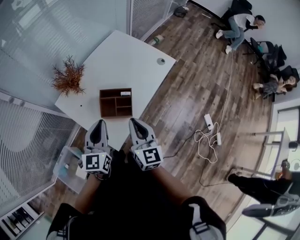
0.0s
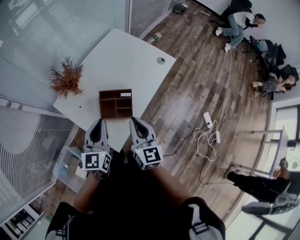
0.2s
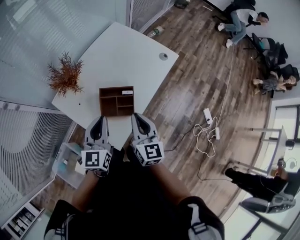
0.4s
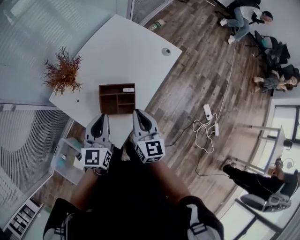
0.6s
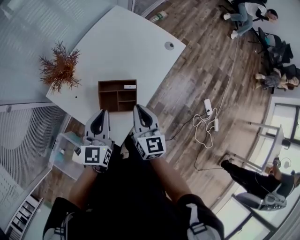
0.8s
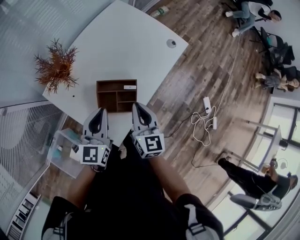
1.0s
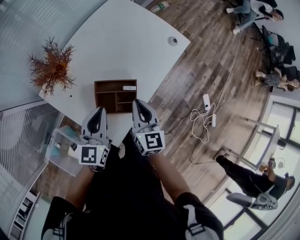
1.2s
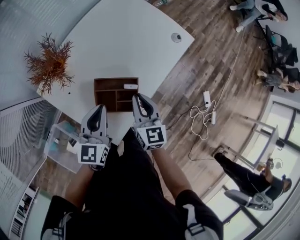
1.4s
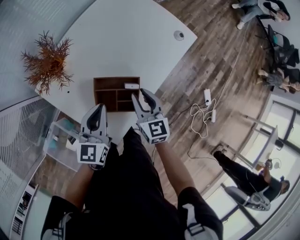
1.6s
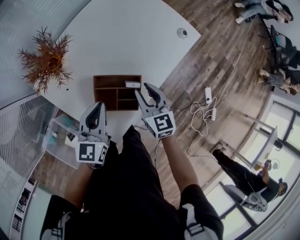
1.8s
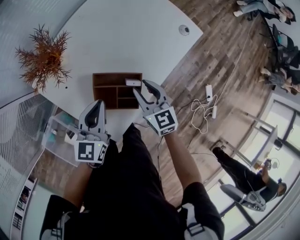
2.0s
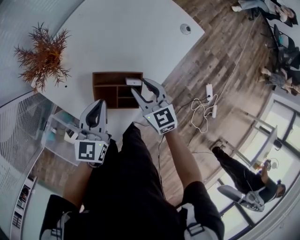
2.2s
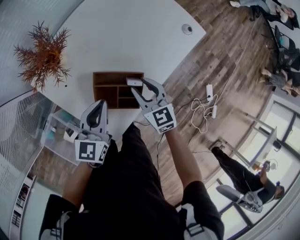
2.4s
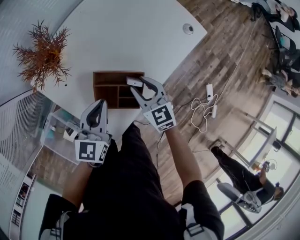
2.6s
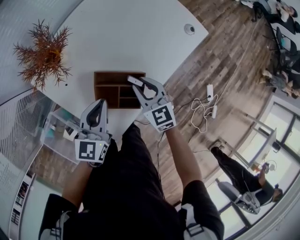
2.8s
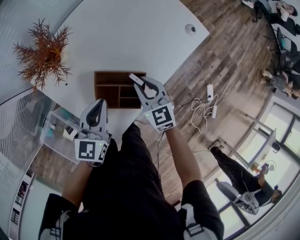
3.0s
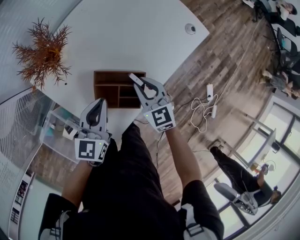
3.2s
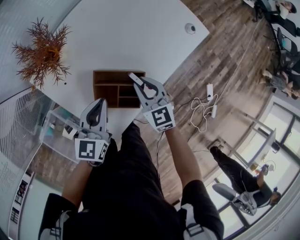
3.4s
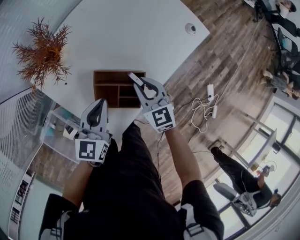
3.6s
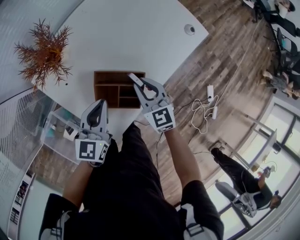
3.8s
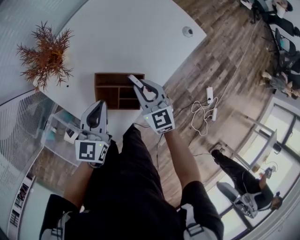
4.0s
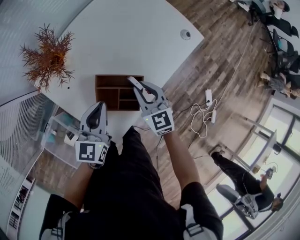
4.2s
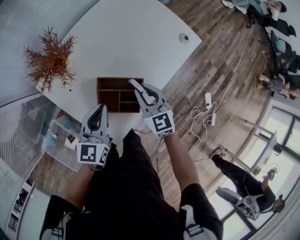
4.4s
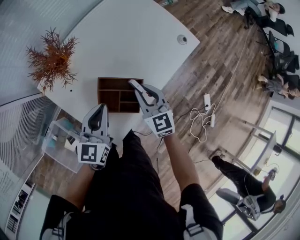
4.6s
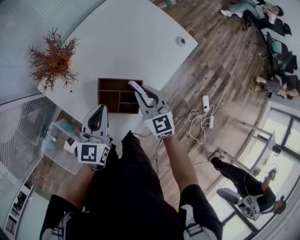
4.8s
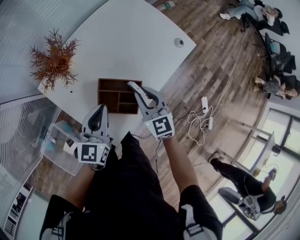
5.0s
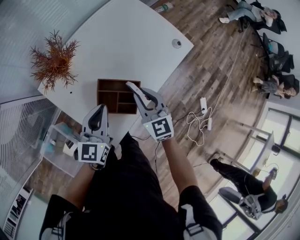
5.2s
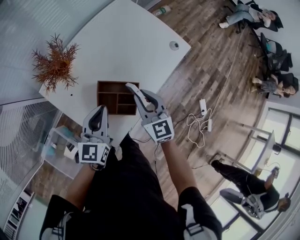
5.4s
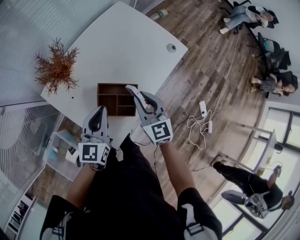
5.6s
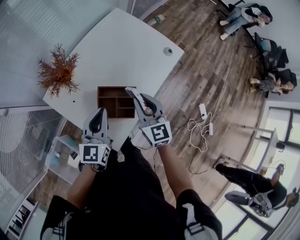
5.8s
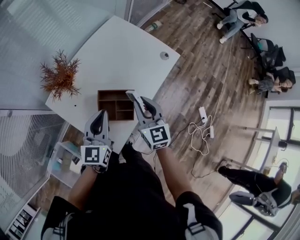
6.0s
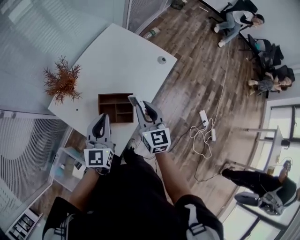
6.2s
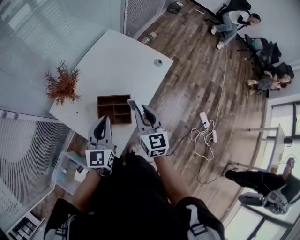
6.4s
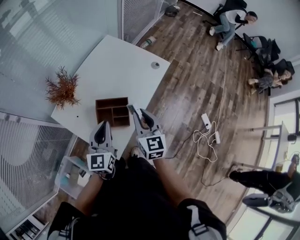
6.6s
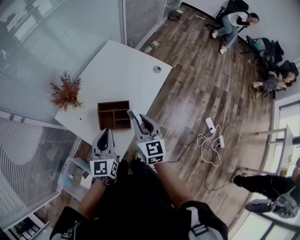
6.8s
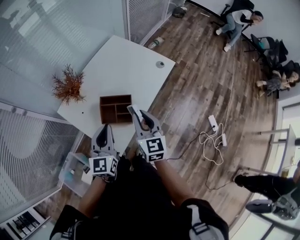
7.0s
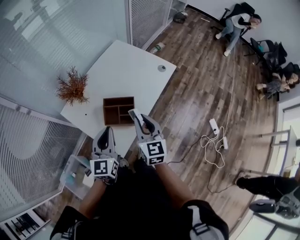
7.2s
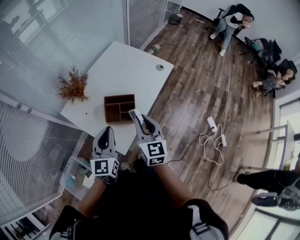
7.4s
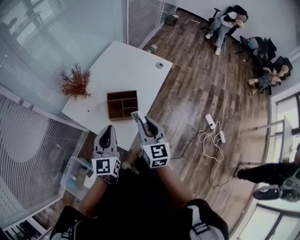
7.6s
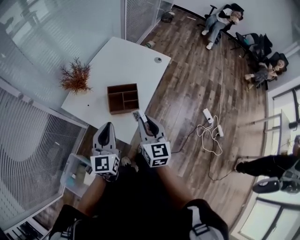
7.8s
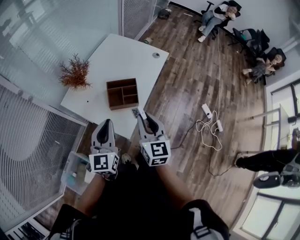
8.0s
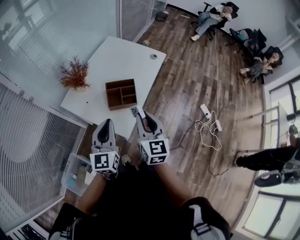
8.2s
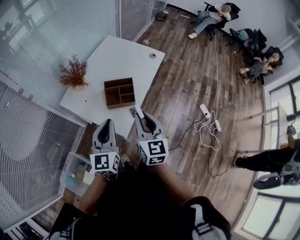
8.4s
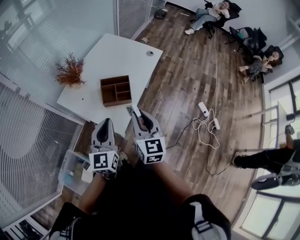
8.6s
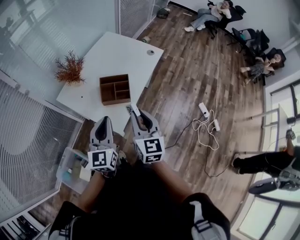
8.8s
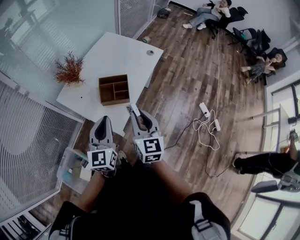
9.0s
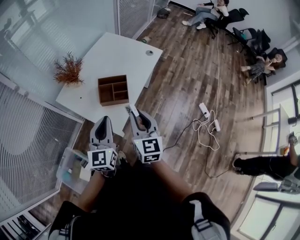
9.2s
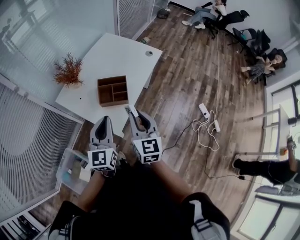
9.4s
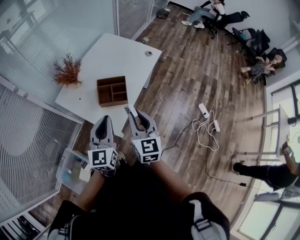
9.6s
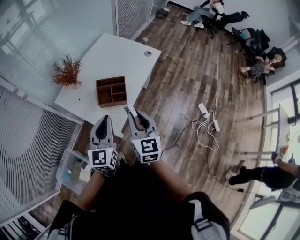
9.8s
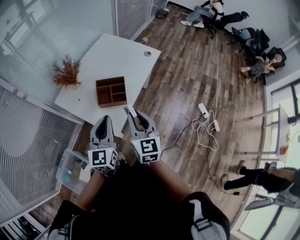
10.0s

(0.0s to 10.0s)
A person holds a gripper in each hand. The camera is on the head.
0.0s - 1.4s: The two grippers go about 20 cm forward and downward.
1.4s - 2.8s: The right gripper heads downward, covering approximately 10 cm, and swivels roughly 30 degrees.
2.8s - 4.2s: The grippers make only small movements.
4.2s - 5.8s: The right gripper travels upward by approximately 10 cm. The left gripper travels upward by approximately 10 cm.
5.8s - 7.2s: Both grippers travel together backward and upward, roughly 15 cm.
7.2s - 8.6s: Both grippers move backward, approximately 15 cm.
8.6s - 10.0s: The grippers move only a little.

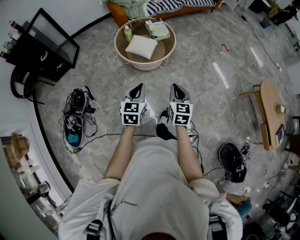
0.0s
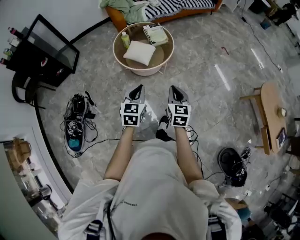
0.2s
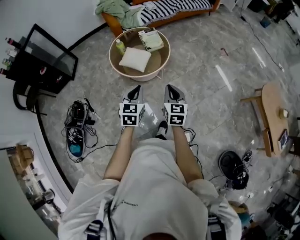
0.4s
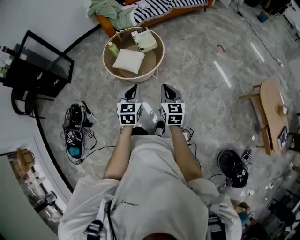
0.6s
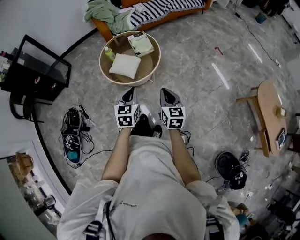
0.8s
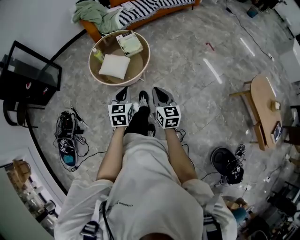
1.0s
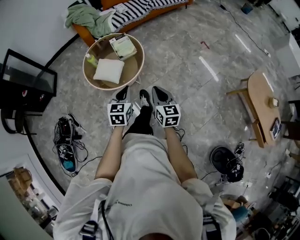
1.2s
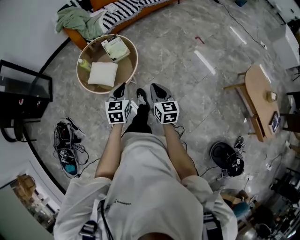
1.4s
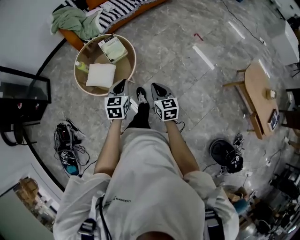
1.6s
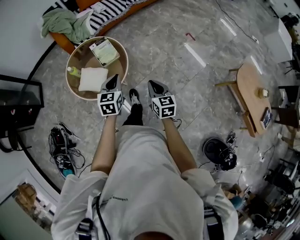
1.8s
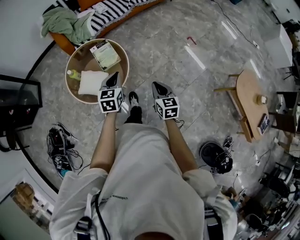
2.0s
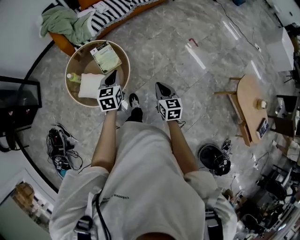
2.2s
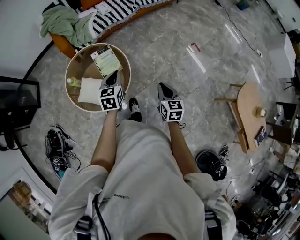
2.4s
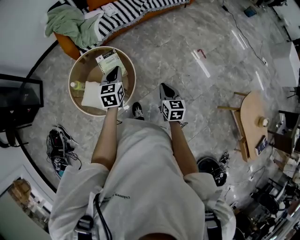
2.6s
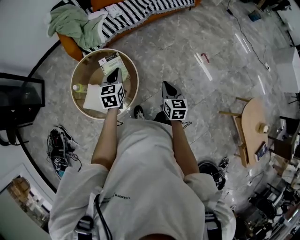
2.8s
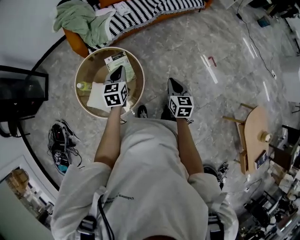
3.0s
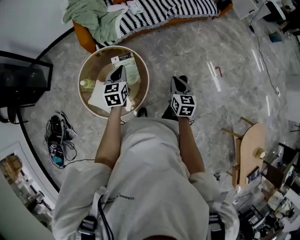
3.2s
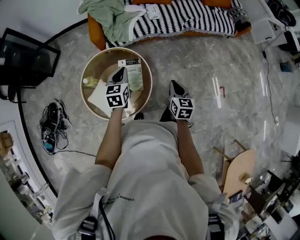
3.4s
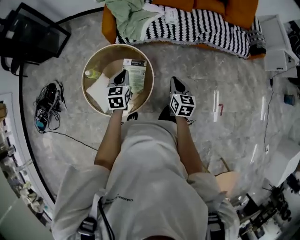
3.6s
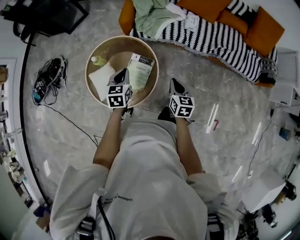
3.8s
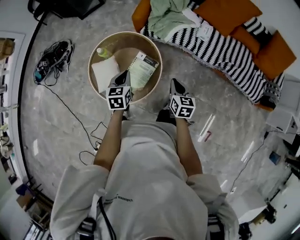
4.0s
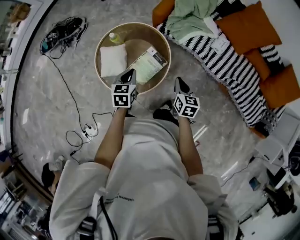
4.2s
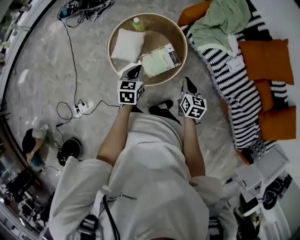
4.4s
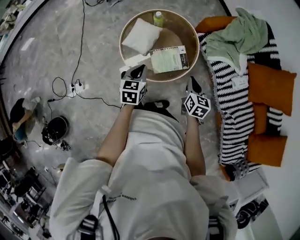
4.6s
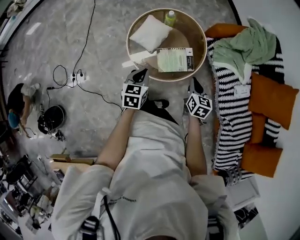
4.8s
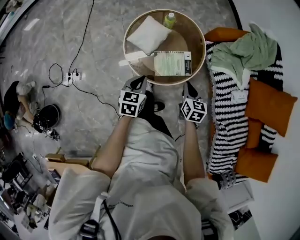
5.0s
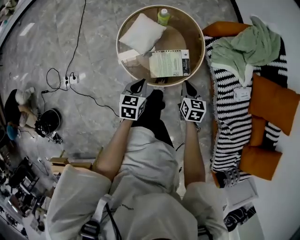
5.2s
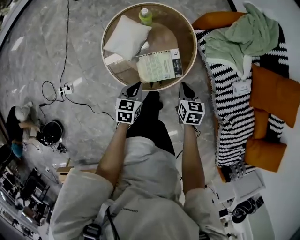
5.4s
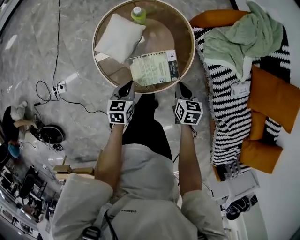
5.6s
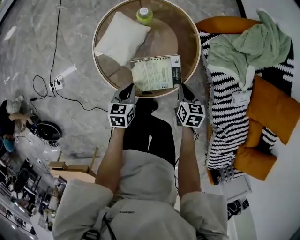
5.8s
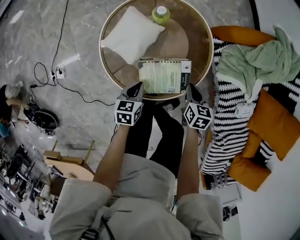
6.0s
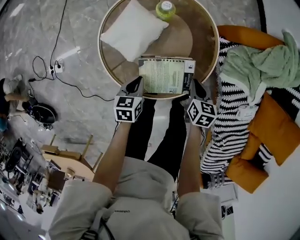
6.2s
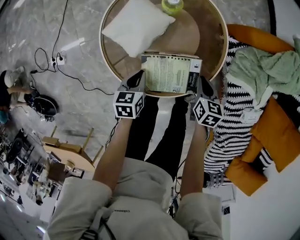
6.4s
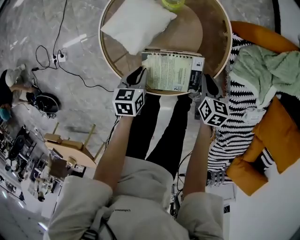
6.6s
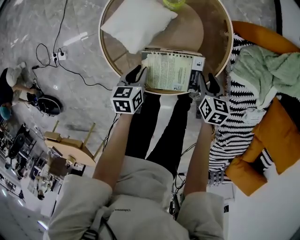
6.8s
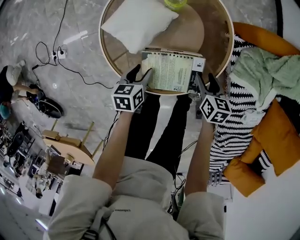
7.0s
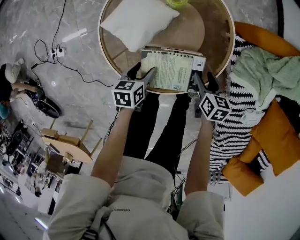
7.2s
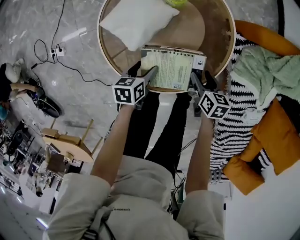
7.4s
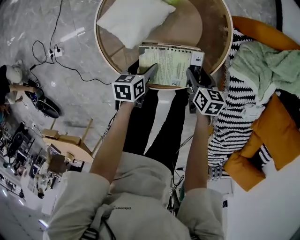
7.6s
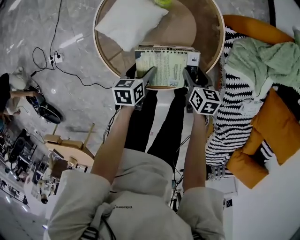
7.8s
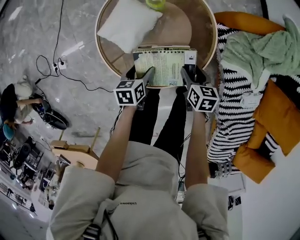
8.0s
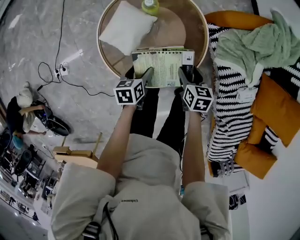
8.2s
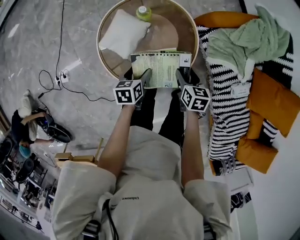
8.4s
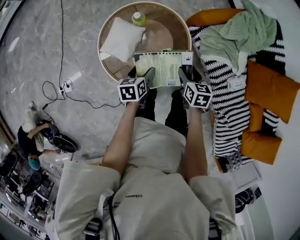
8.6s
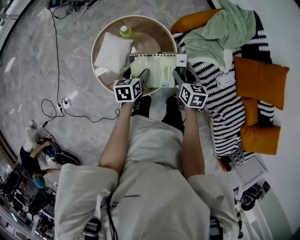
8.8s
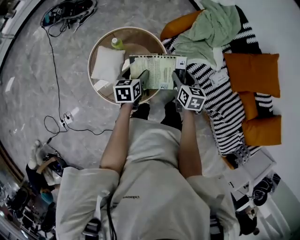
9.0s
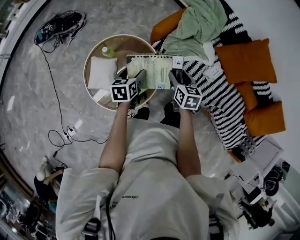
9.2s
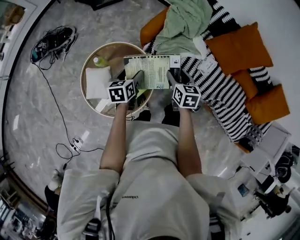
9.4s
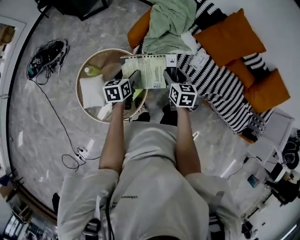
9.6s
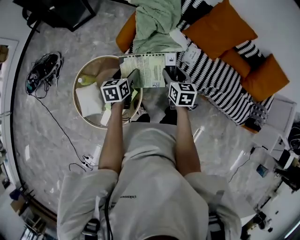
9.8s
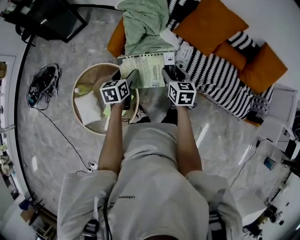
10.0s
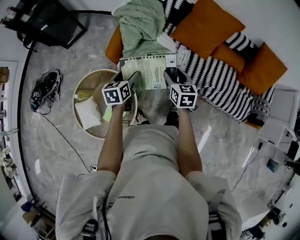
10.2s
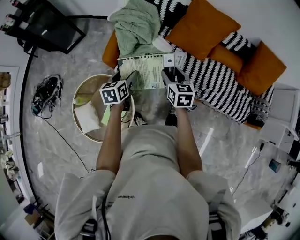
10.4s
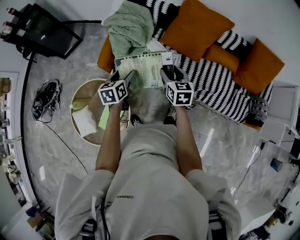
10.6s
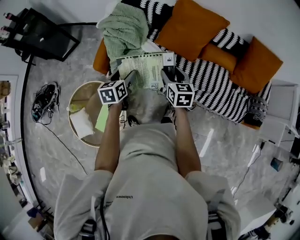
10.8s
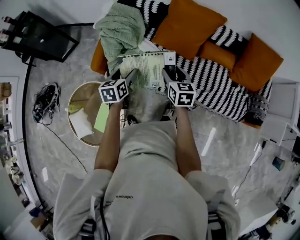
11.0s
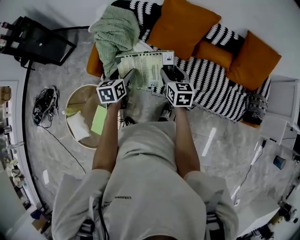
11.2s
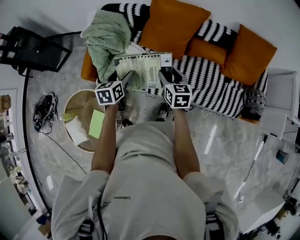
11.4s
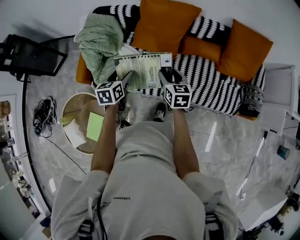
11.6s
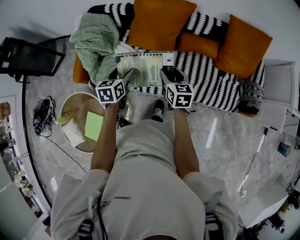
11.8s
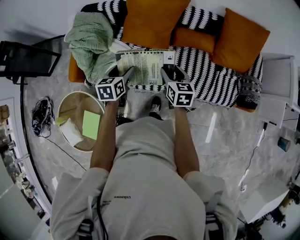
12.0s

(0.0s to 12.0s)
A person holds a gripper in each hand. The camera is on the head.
0.0s - 1.6s: The two grippers go some 35 cm forward and to the right.
1.6s - 3.0s: Both grippers travel together forward, approximately 35 cm.
3.0s - 4.4s: The right gripper changes place by about 35 cm, and rotates about 80 degrees. Meanwhile the left gripper moves downward, approximately 5 cm, and rotates some 80 degrees.
4.4s - 6.0s: The left gripper shifts some 25 cm downward, and rotates roughly 30 degrees; the right gripper travels downward and forward by some 25 cm, and changes its angle by approximately 30 degrees.
6.0s - 7.6s: The two grippers go some 10 cm downward. The right gripper opens up. Meanwhile the left gripper opens up.
7.6s - 9.0s: The grippers both shift upward by approximately 30 cm. The right gripper rotates approximately 30 degrees. The left gripper swivels some 30 degrees.
9.0s - 10.4s: The right gripper ends up roughly 30 cm from where it was, and changes its angle by roughly 30 degrees; the left gripper ends up about 35 cm from where it was, and rotates roughly 30 degrees.
10.4s - 12.0s: The two grippers go about 30 cm to the right.

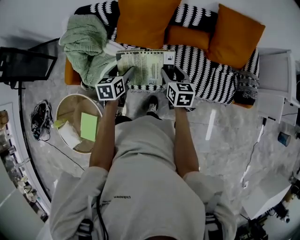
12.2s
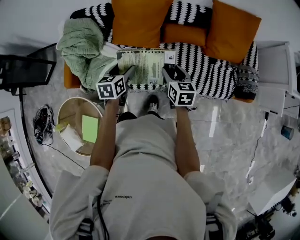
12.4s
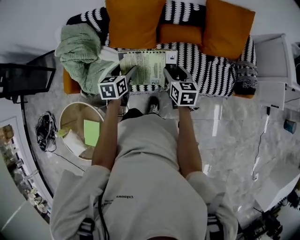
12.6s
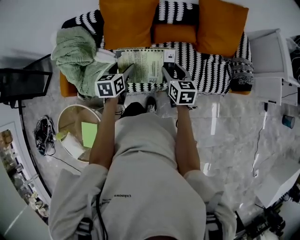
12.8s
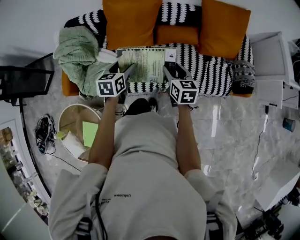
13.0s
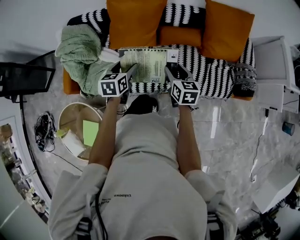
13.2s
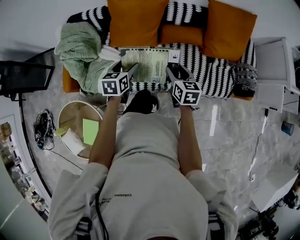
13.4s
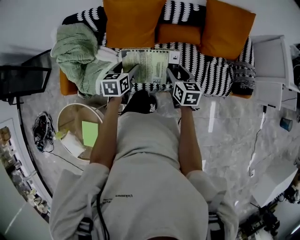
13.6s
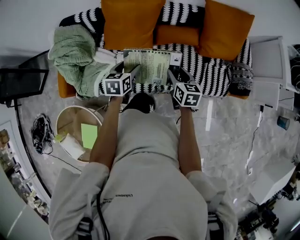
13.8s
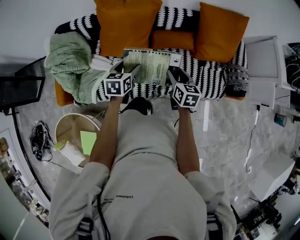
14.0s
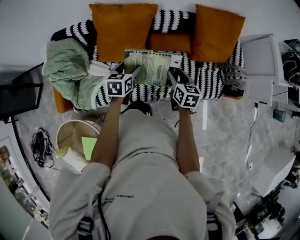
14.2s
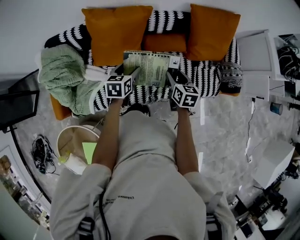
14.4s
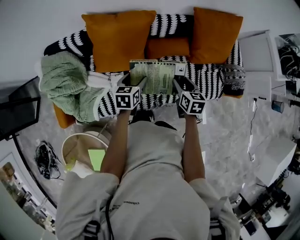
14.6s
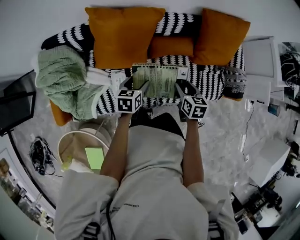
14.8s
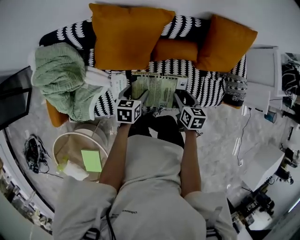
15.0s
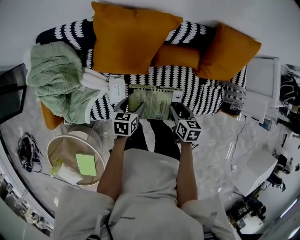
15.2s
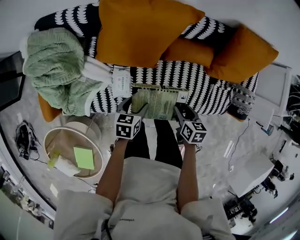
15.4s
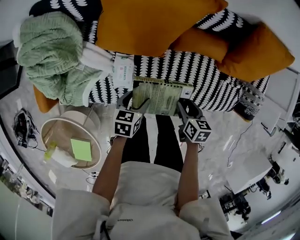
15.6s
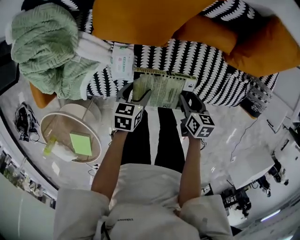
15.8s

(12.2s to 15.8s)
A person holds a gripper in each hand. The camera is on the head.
12.2s - 14.0s: The left gripper is displaced forward and to the right by roughly 15 cm; the right gripper is displaced to the right and forward by about 10 cm.
14.0s - 15.8s: The grippers both shift downward by roughly 25 cm. The right gripper swivels roughly 30 degrees. Meanwhile the left gripper rotates approximately 20 degrees.
